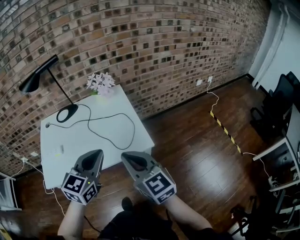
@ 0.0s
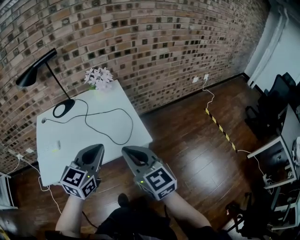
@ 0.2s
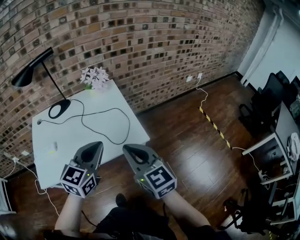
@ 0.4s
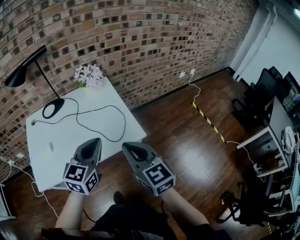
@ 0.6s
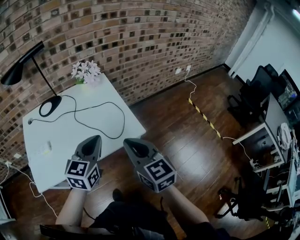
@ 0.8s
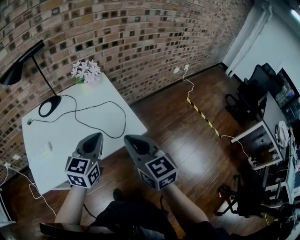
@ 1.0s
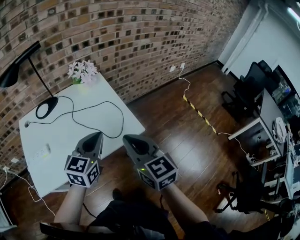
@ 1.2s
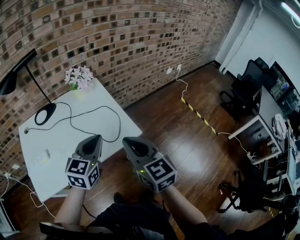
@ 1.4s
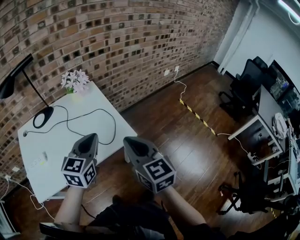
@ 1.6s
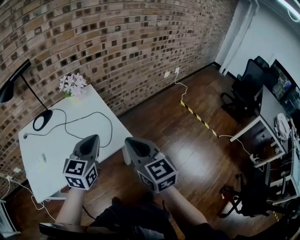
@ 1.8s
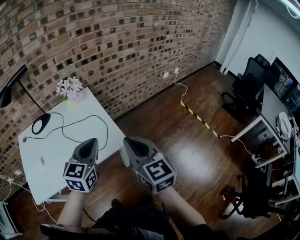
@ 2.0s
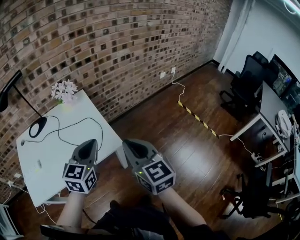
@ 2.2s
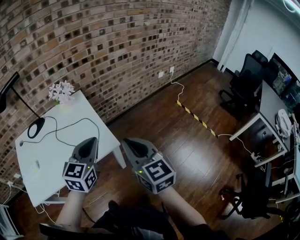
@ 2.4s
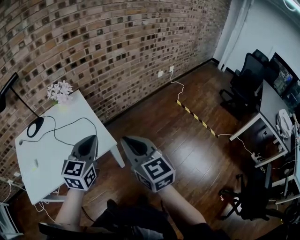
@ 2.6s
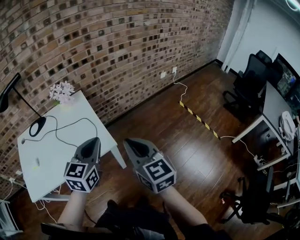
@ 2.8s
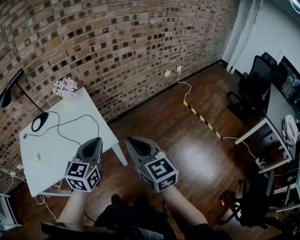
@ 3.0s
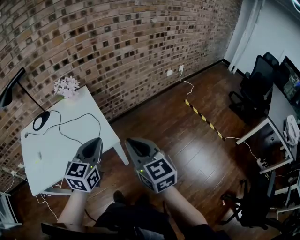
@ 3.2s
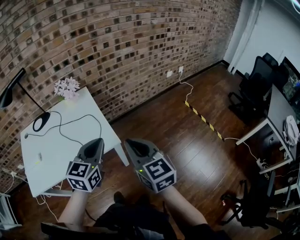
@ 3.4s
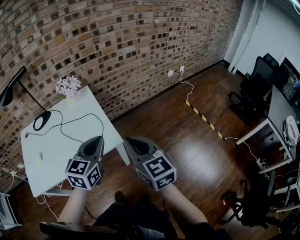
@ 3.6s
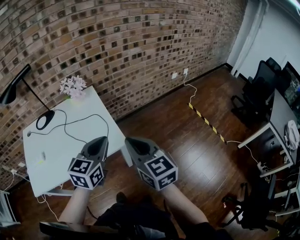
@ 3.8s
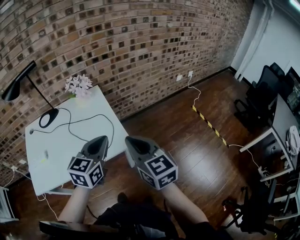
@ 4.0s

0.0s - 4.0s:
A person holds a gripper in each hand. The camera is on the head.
0.0s - 1.4s: The right gripper turns by some 20 degrees, while the left gripper moves roughly 5 cm.
1.4s - 2.6s: The grippers both shift to the right by some 15 cm.
2.6s - 4.0s: The right gripper moves to the left, about 5 cm.

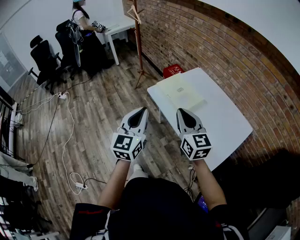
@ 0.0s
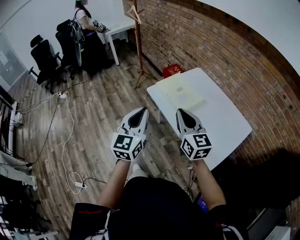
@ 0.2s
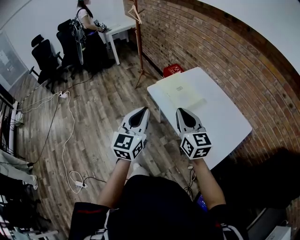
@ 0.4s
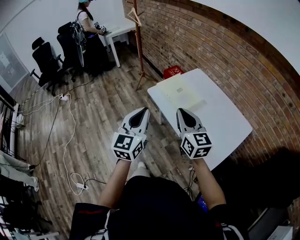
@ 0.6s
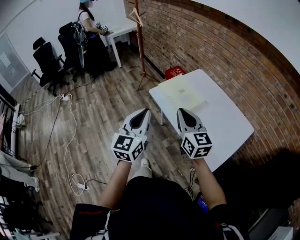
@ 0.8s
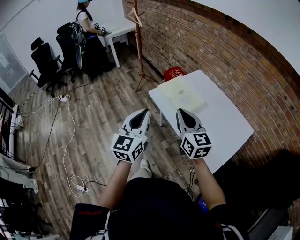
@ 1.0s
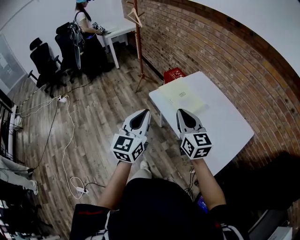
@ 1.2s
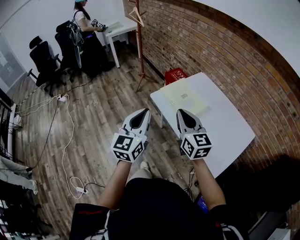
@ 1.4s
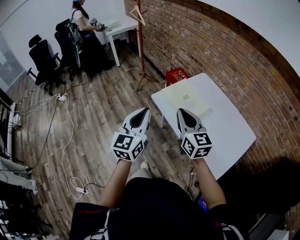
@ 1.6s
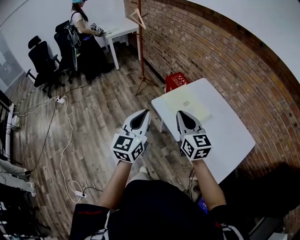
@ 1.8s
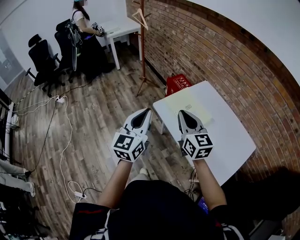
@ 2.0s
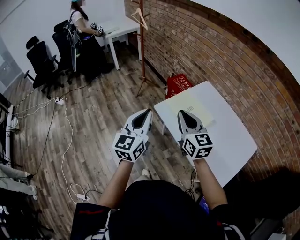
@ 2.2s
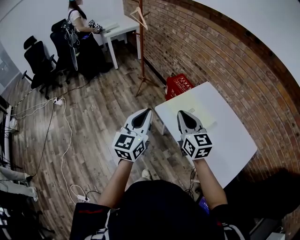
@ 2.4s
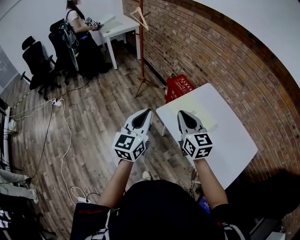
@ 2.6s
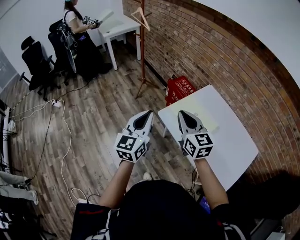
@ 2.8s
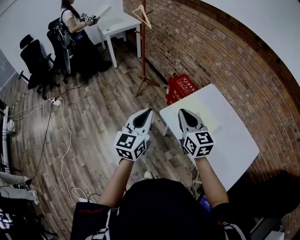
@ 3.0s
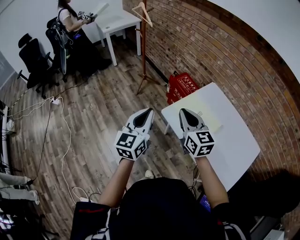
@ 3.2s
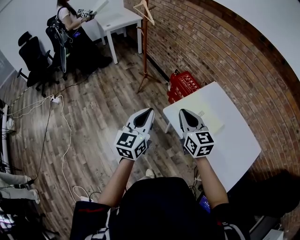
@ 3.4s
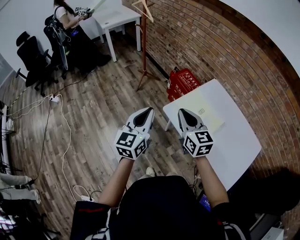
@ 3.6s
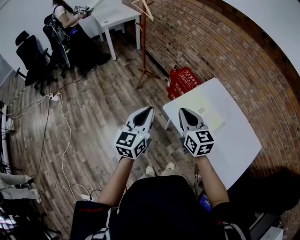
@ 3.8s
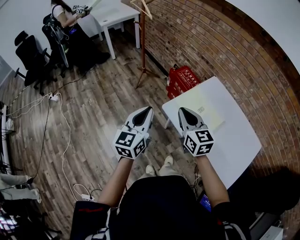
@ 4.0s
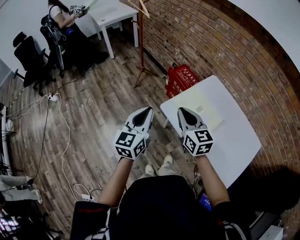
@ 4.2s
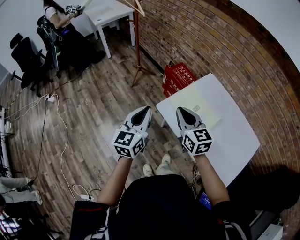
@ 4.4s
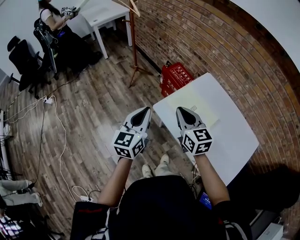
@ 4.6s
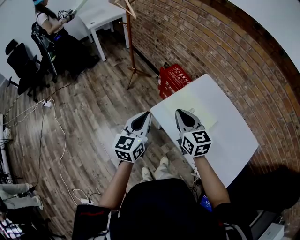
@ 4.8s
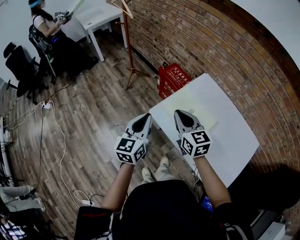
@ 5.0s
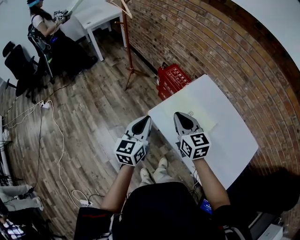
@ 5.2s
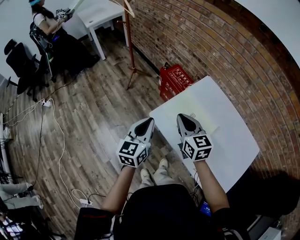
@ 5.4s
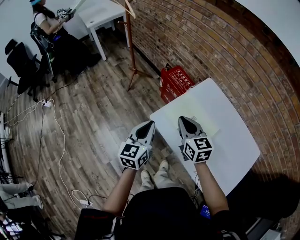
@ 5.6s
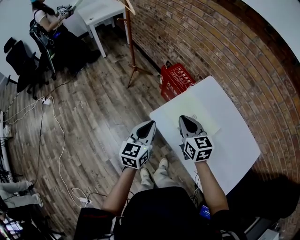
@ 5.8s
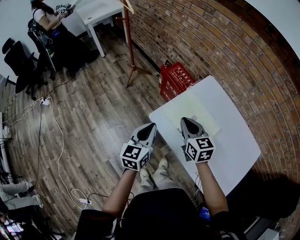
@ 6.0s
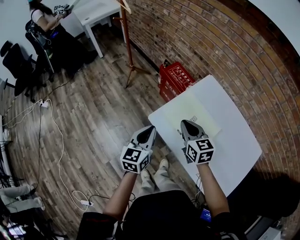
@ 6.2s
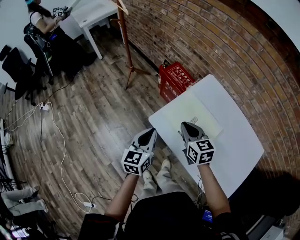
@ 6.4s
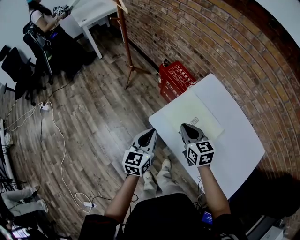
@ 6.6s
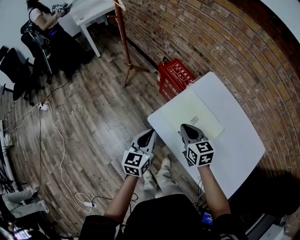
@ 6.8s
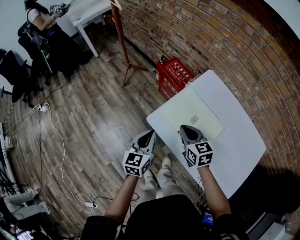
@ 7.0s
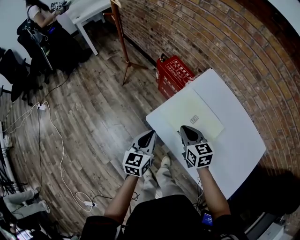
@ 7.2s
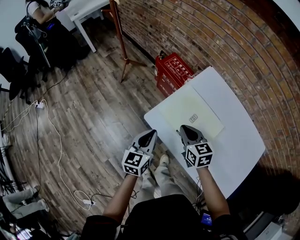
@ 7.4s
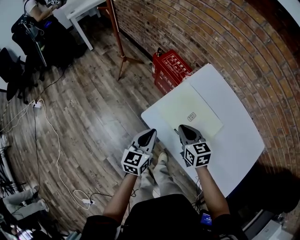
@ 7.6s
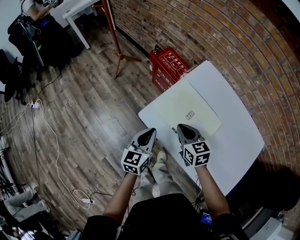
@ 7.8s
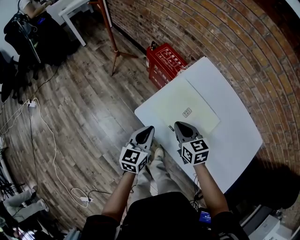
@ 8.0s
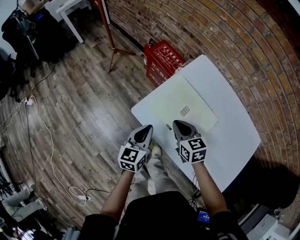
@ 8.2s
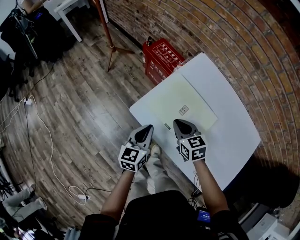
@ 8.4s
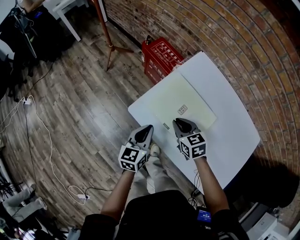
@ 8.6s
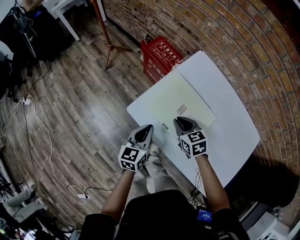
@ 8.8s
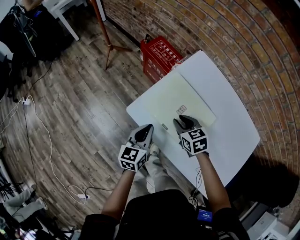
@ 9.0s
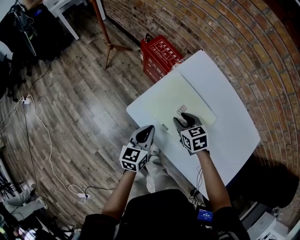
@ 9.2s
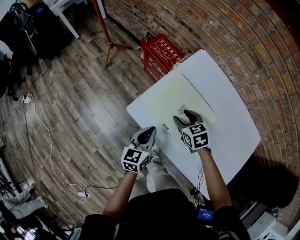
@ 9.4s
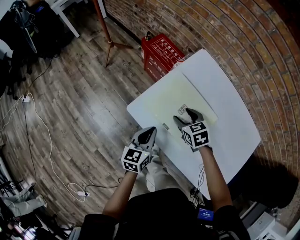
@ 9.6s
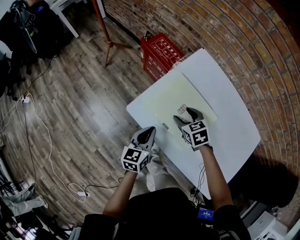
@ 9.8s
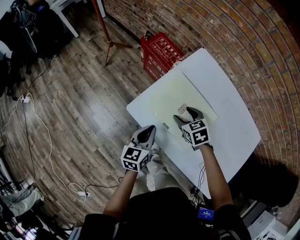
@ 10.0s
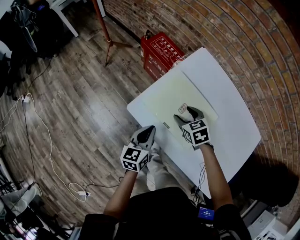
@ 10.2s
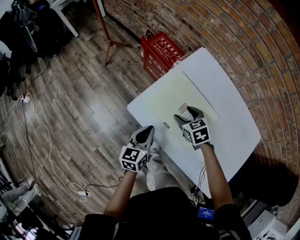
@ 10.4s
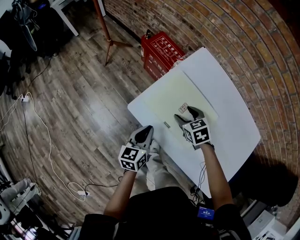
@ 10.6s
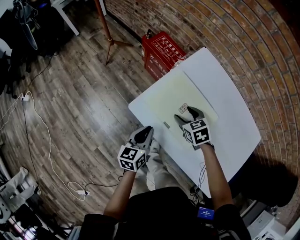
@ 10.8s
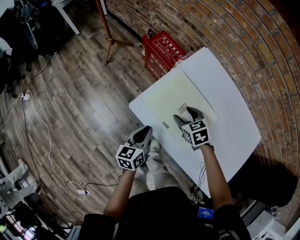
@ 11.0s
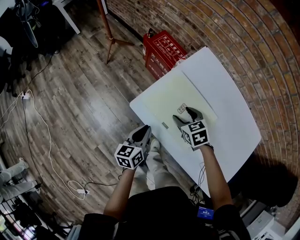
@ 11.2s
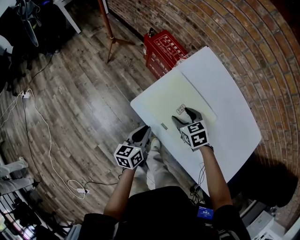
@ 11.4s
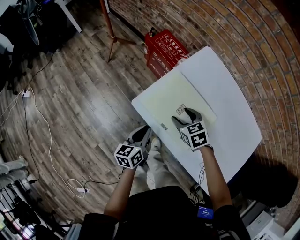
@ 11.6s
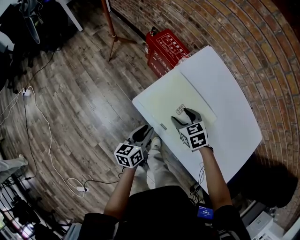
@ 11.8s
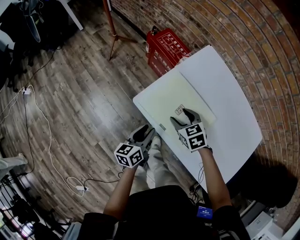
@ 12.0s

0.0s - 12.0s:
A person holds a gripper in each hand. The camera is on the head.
0.0s - 1.6s: The grippers both shift forward by some 5 cm.
1.6s - 3.0s: Both grippers move forward and to the left, some 20 cm.
3.0s - 4.4s: The left gripper ends up some 5 cm from where it was; the right gripper goes approximately 5 cm downward.
4.4s - 6.0s: The right gripper shifts some 15 cm downward, forward and to the right. The left gripper moves downward, to the right and forward, approximately 15 cm.
6.0s - 7.6s: Both grippers travel together downward, approximately 10 cm.
7.6s - 9.0s: The right gripper moves downward and to the right, some 10 cm. Meanwhile the left gripper goes some 5 cm to the right.
9.0s - 10.4s: The right gripper opens up.
10.4s - 12.0s: The left gripper shifts by some 5 cm, and opens up; the right gripper moves some 5 cm.

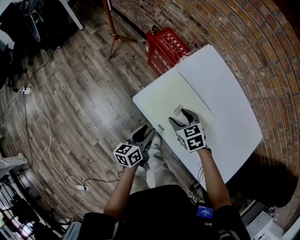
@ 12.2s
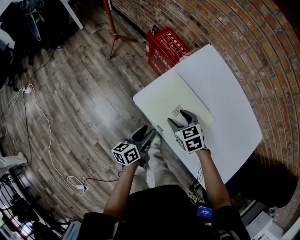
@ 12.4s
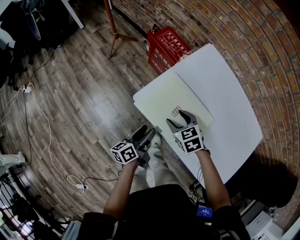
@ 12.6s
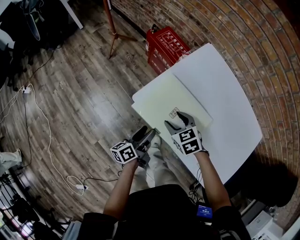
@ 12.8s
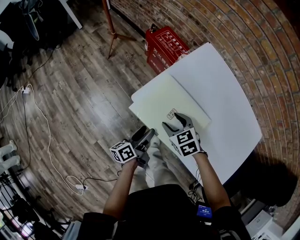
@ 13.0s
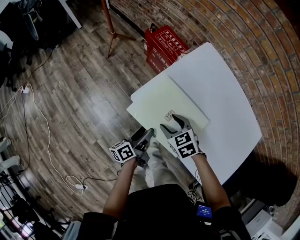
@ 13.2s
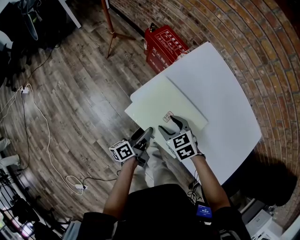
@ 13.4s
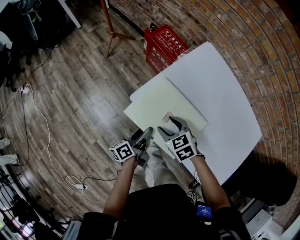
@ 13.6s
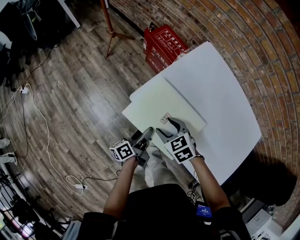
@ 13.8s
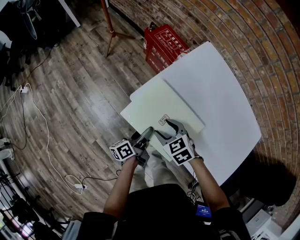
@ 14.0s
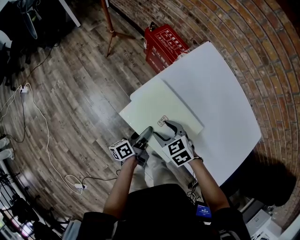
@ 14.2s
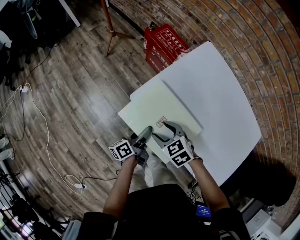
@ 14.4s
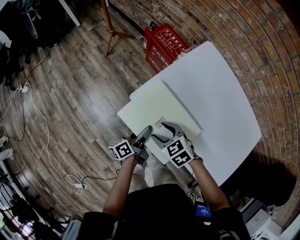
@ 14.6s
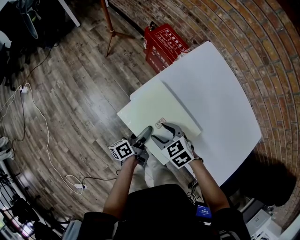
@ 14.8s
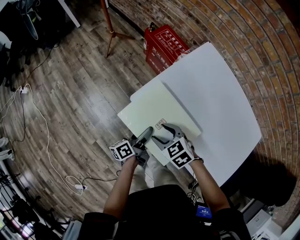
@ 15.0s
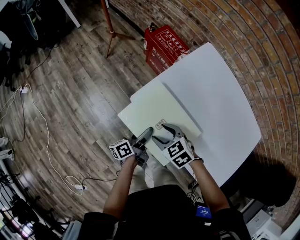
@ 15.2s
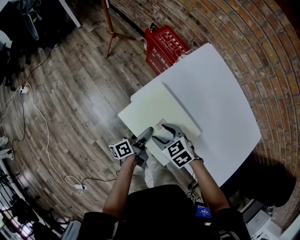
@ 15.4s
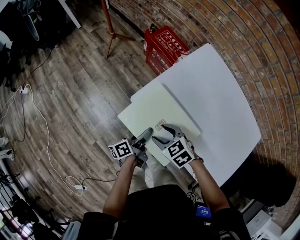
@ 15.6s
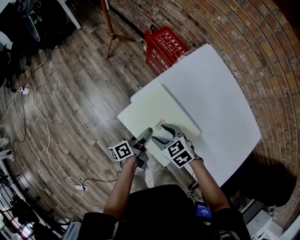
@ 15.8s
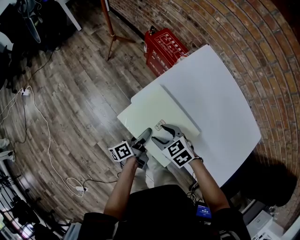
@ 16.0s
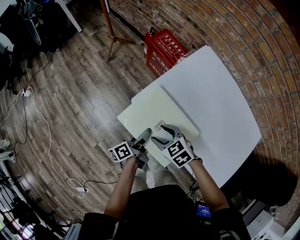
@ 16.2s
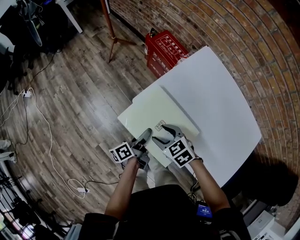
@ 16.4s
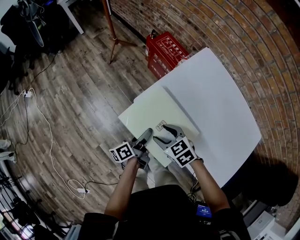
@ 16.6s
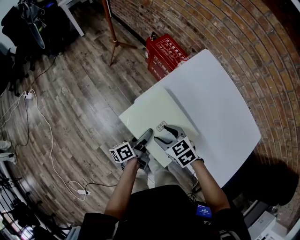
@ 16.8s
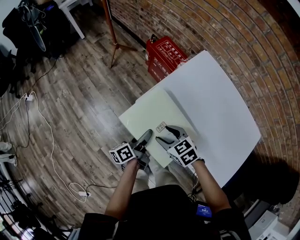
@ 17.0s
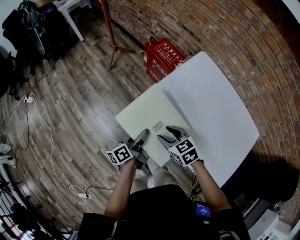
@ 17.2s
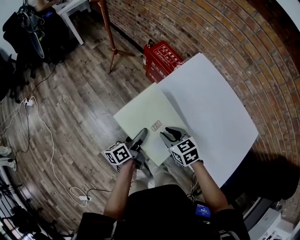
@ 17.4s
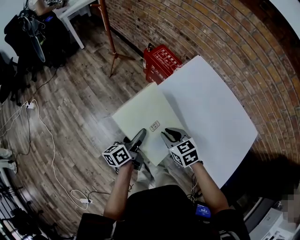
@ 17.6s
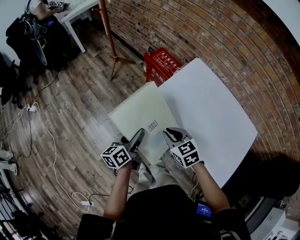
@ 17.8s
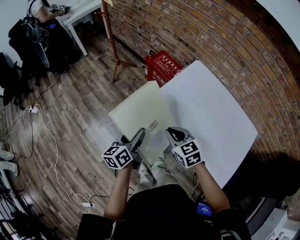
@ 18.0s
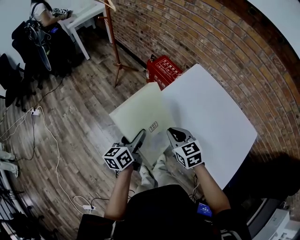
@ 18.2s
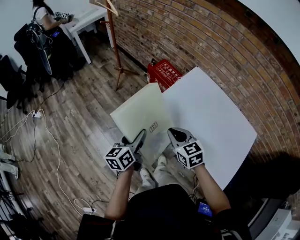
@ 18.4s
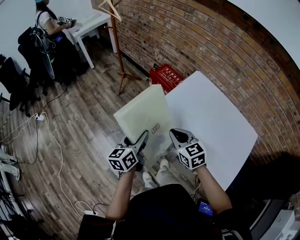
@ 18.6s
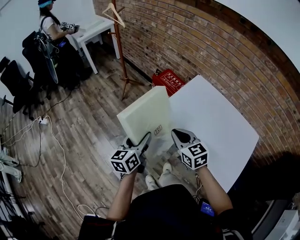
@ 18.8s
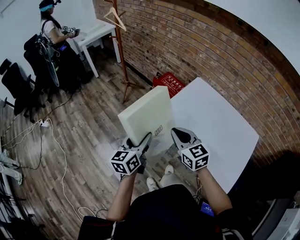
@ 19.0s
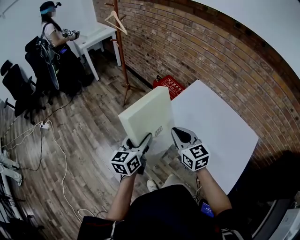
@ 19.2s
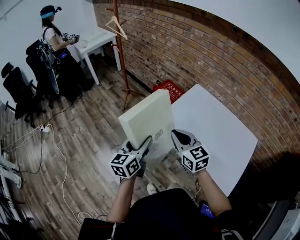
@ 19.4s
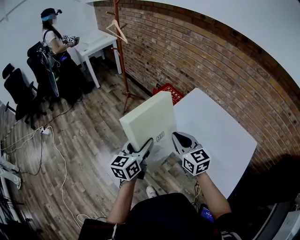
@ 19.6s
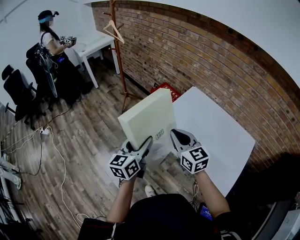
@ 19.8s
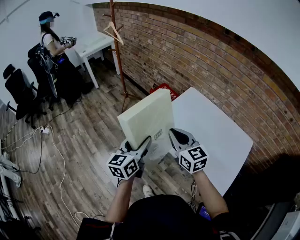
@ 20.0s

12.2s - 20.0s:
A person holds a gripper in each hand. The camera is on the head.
12.2s - 13.8s: The left gripper rotates some 30 degrees, and opens up; the right gripper travels to the left and backward by approximately 10 cm.
13.8s - 16.8s: The grippers stay close to where they were, moving slightly.
16.8s - 18.4s: The right gripper shifts some 15 cm upward, changes its angle by about 20 degrees, and closes up, while the left gripper heads upward and to the left, covering about 20 cm, and swivels approximately 40 degrees.
18.4s - 20.0s: The right gripper heads upward, covering approximately 15 cm, and changes its angle by about 20 degrees. Meanwhile the left gripper goes roughly 15 cm upward and backward.
